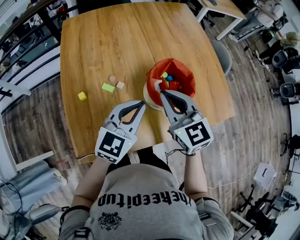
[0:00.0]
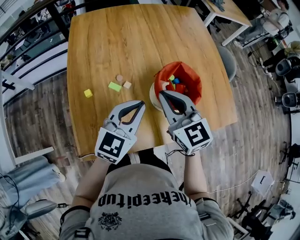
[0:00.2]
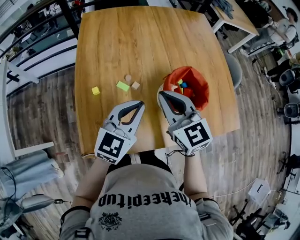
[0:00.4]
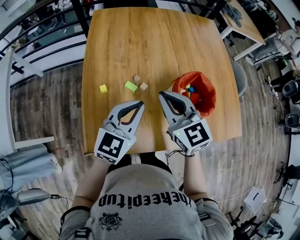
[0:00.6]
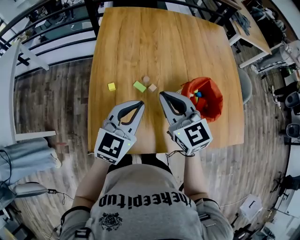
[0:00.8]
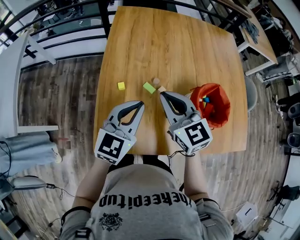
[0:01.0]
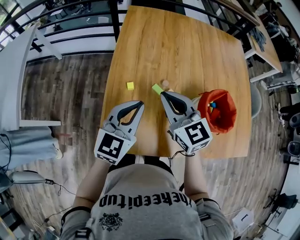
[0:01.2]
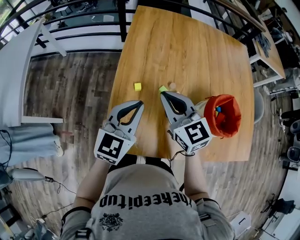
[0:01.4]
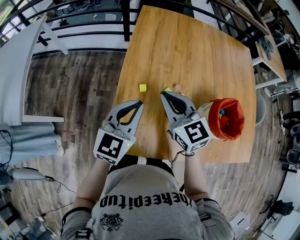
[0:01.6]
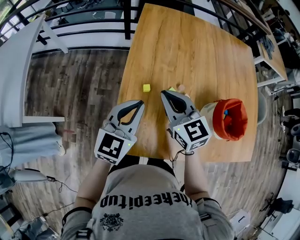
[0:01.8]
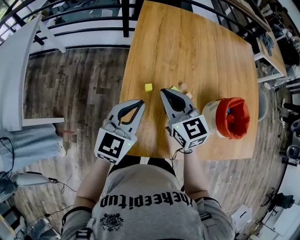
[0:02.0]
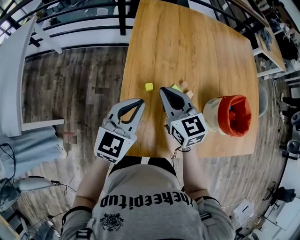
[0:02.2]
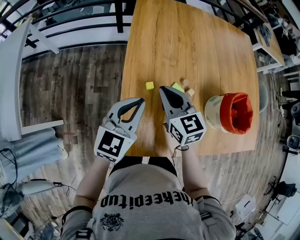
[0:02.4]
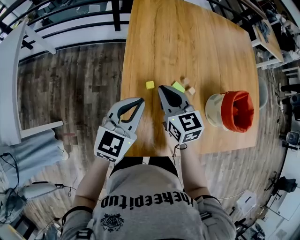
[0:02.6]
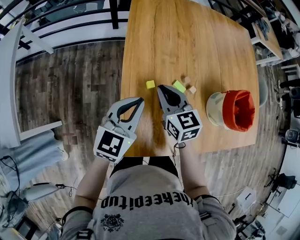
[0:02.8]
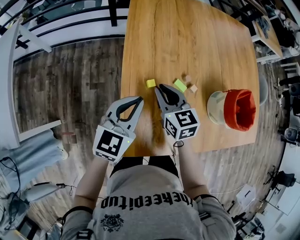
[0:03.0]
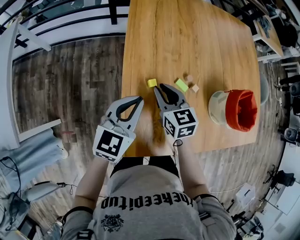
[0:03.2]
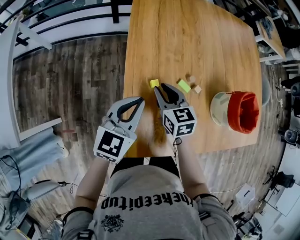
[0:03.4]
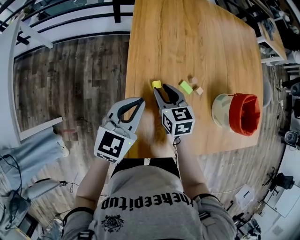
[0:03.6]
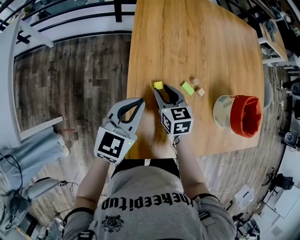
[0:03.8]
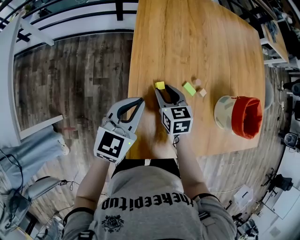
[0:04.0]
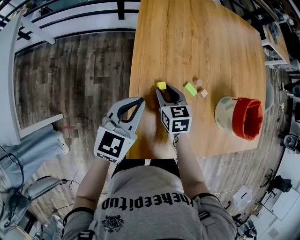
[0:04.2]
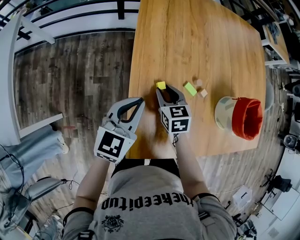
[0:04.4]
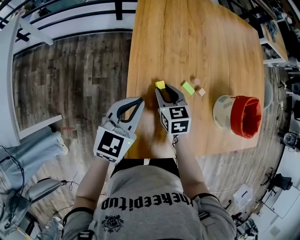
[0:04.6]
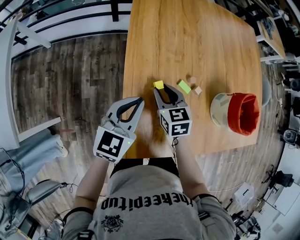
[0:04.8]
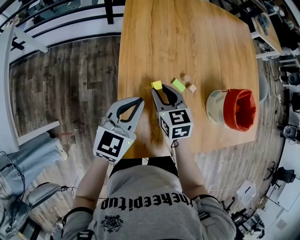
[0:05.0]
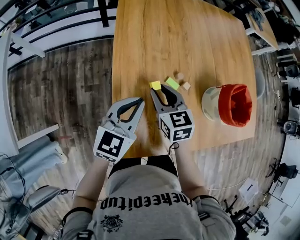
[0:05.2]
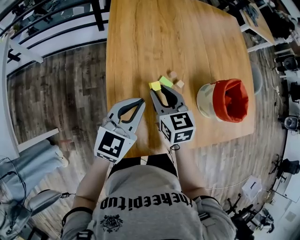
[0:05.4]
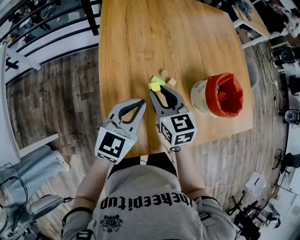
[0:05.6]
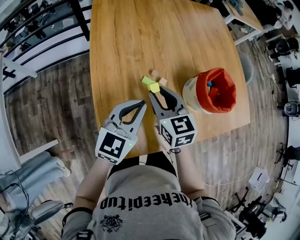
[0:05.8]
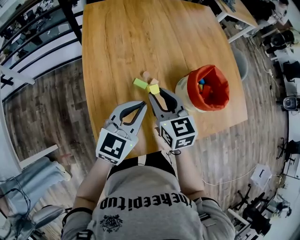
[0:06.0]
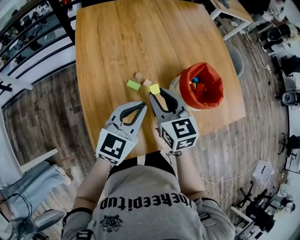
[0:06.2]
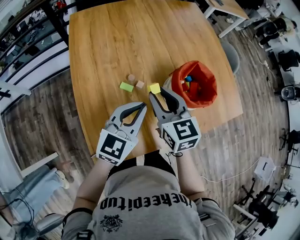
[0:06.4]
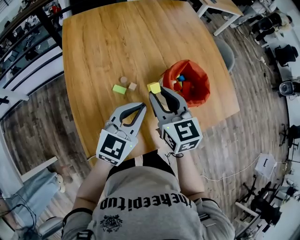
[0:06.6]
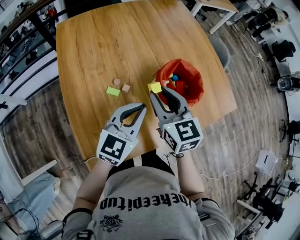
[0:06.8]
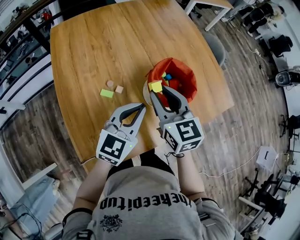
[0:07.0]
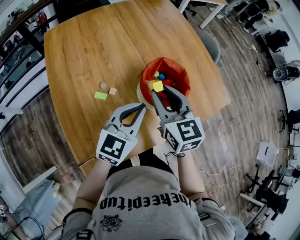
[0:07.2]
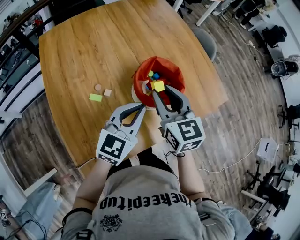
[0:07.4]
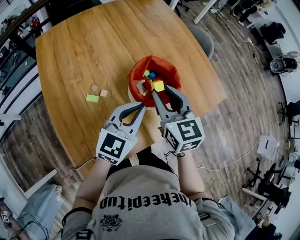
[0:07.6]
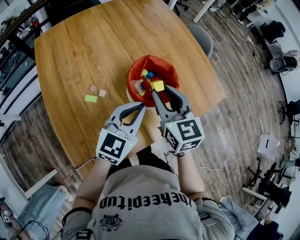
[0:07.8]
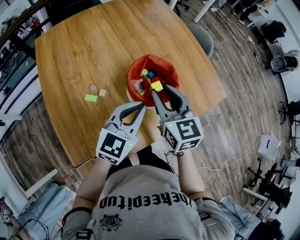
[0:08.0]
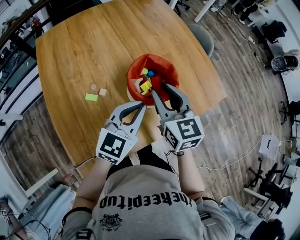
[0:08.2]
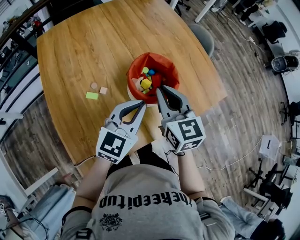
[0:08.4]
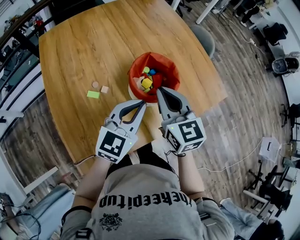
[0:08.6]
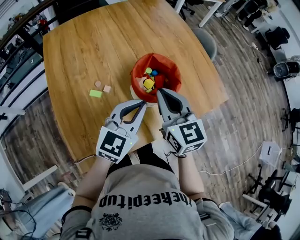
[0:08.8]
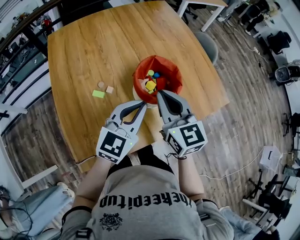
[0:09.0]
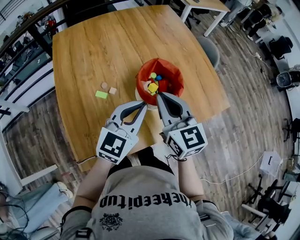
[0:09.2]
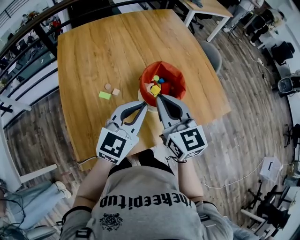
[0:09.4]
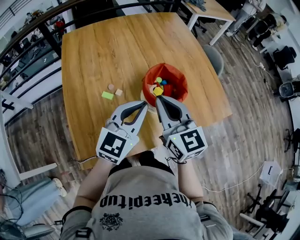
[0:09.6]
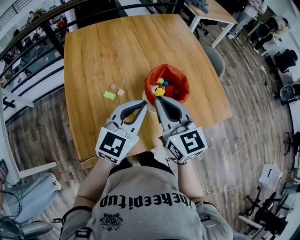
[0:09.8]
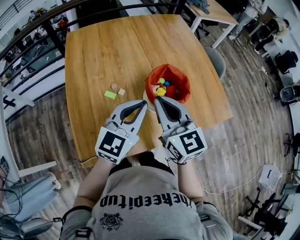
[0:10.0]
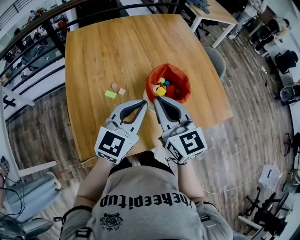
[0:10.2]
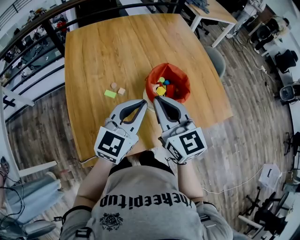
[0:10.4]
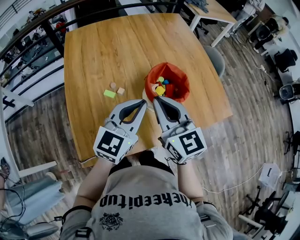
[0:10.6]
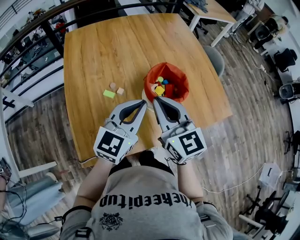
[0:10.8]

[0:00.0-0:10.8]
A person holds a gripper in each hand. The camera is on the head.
0.0 to 1.6 s: The left gripper changes place by roughly 25 cm, and rotates some 30 degrees. Meanwhile the right gripper ends up roughly 25 cm from where it was, and turns by roughly 20 degrees.
1.6 to 3.0 s: The right gripper travels downward by roughly 10 cm, and swivels about 20 degrees, while the left gripper heads downward and to the left, covering roughly 10 cm.
3.0 to 4.6 s: The right gripper travels downward by roughly 10 cm.
4.6 to 6.2 s: The left gripper is displaced to the right by some 20 cm, and swivels roughly 20 degrees, while the right gripper heads to the right and upward, covering approximately 25 cm, and changes its angle by about 20 degrees.
6.2 to 7.8 s: Both grippers move to the right, about 20 cm.
7.8 to 9.2 s: The right gripper shifts by approximately 5 cm, and closes up.
9.2 to 10.8 s: The right gripper ends up roughly 5 cm from where it was.

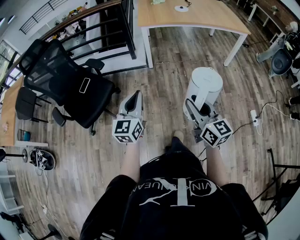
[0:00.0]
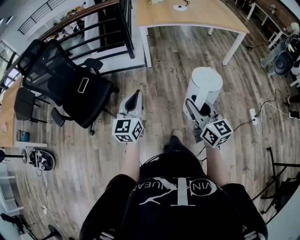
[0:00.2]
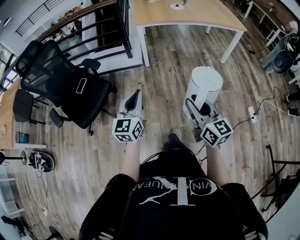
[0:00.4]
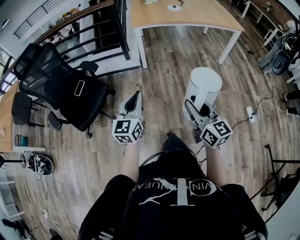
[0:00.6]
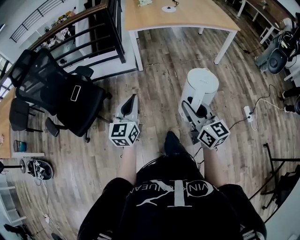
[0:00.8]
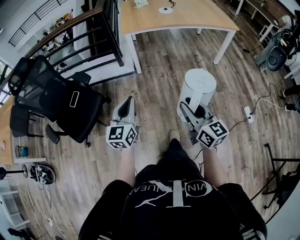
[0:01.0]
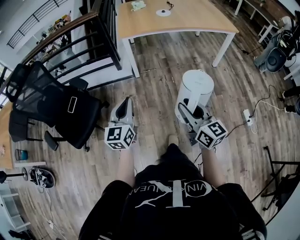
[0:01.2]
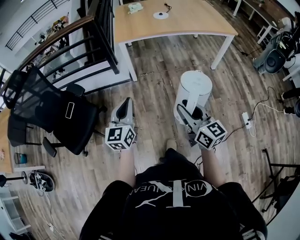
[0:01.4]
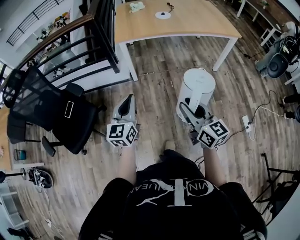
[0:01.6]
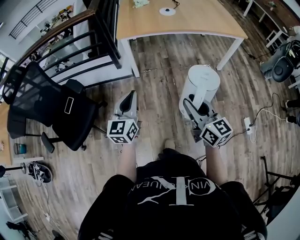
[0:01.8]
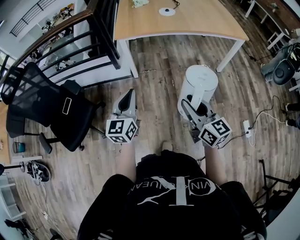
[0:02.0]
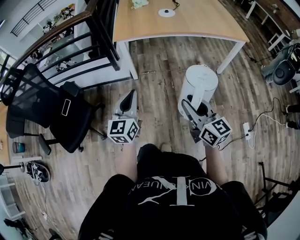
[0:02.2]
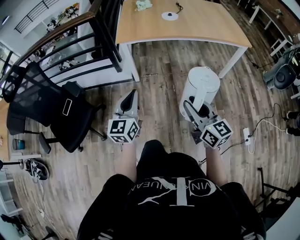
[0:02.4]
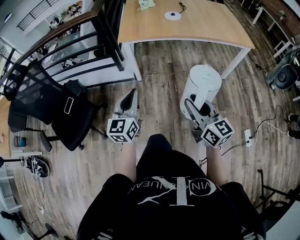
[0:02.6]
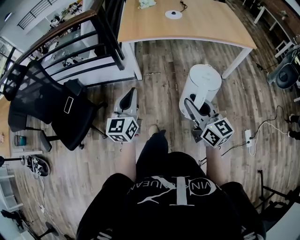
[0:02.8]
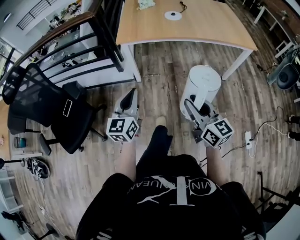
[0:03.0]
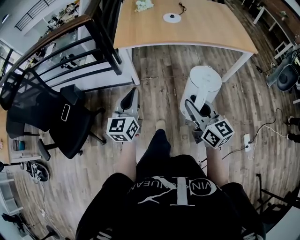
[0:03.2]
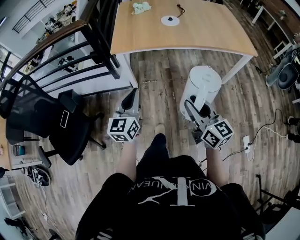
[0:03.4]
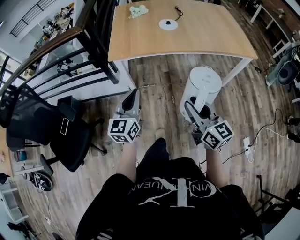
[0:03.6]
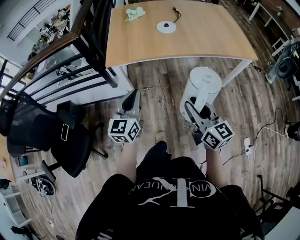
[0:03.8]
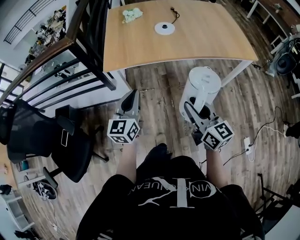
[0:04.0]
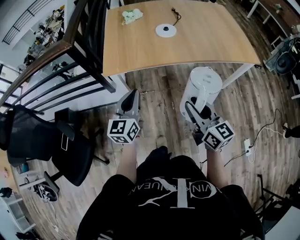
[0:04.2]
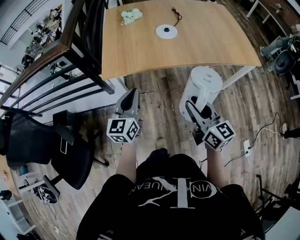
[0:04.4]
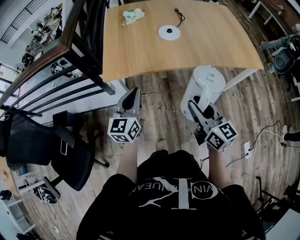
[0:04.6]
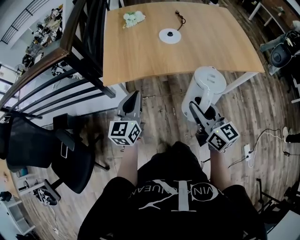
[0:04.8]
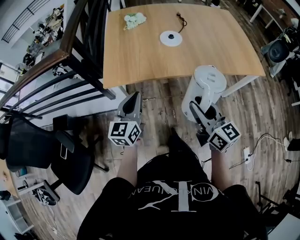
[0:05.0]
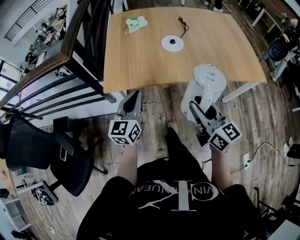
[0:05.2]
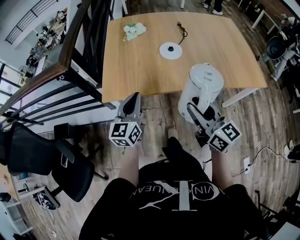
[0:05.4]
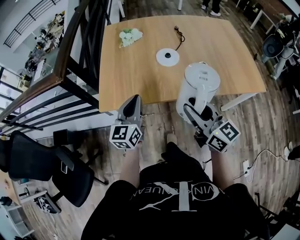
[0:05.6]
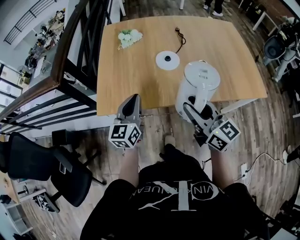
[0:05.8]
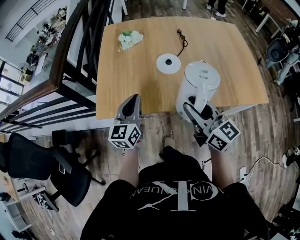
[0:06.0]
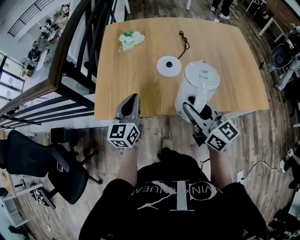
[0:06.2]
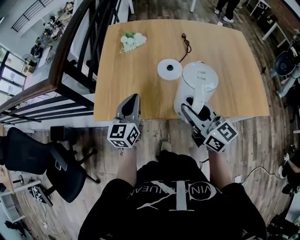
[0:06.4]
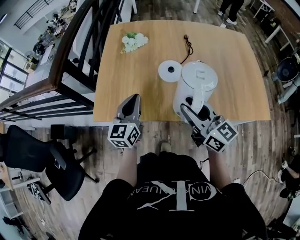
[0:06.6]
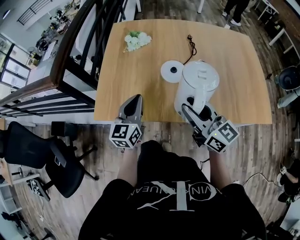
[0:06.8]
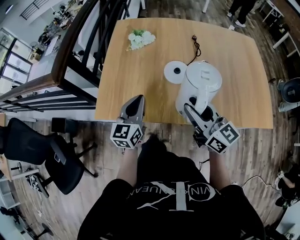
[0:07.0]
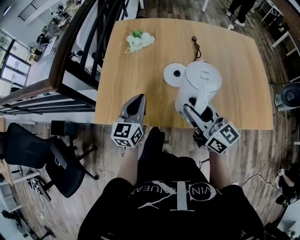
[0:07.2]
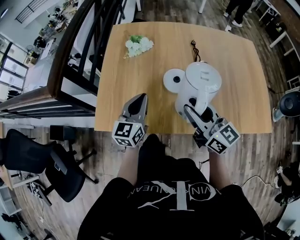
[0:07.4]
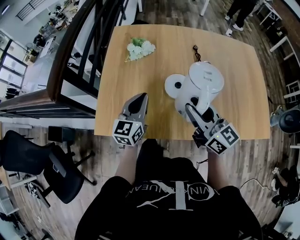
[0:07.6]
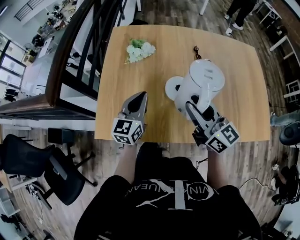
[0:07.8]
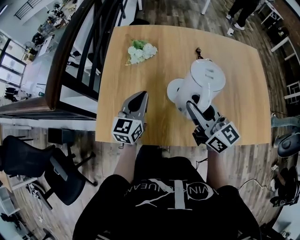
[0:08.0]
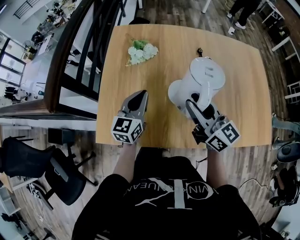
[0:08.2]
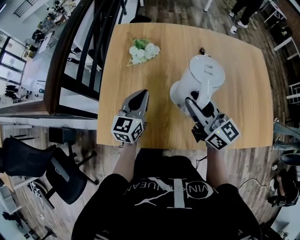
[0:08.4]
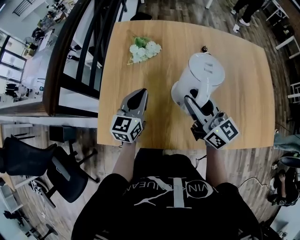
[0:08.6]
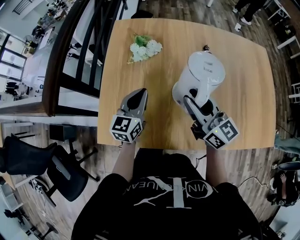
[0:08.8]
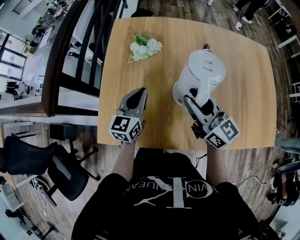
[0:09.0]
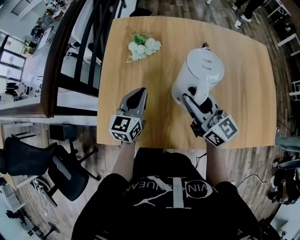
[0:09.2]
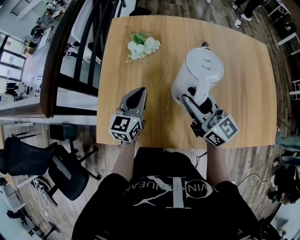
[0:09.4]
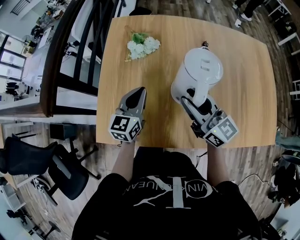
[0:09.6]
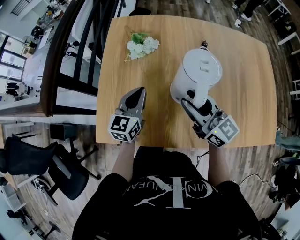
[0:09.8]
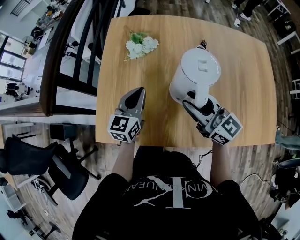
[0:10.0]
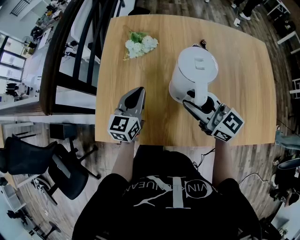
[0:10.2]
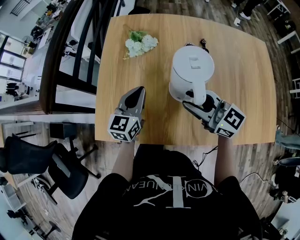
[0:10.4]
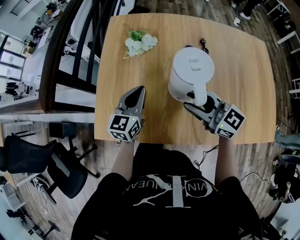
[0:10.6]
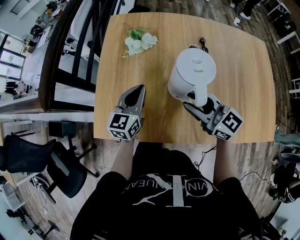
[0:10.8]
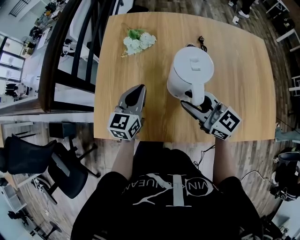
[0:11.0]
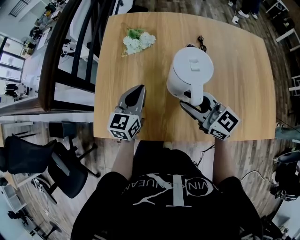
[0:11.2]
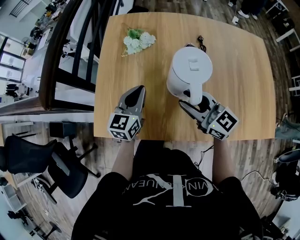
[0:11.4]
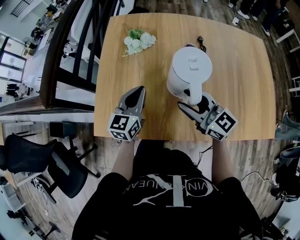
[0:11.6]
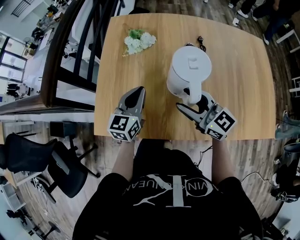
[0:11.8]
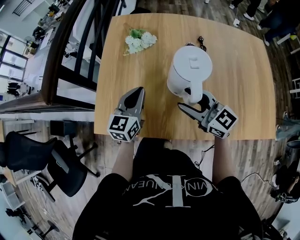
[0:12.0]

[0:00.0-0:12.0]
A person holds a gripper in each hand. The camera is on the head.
0.0 to 1.6 s: The grippers both shift forward and to the right by roughly 20 cm.
1.6 to 3.0 s: The two grippers go about 15 cm forward and to the right.
3.0 to 4.4 s: The two grippers go some 30 cm forward.
4.4 to 6.0 s: The grippers both shift forward by roughly 20 cm.
6.0 to 7.6 s: Both grippers travel together forward, some 15 cm.
7.6 to 9.0 s: Both grippers travel together forward, some 10 cm.
9.0 to 10.4 s: The right gripper swivels some 20 degrees.
10.4 to 12.0 s: The grippers make only small movements.

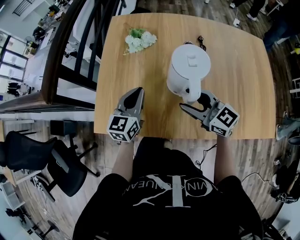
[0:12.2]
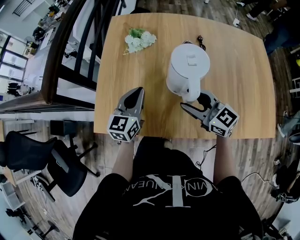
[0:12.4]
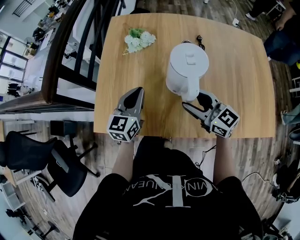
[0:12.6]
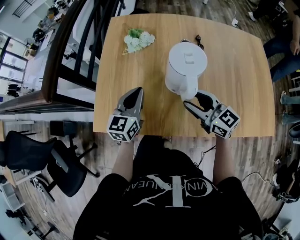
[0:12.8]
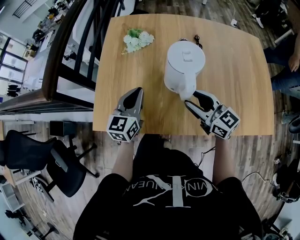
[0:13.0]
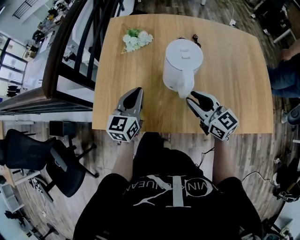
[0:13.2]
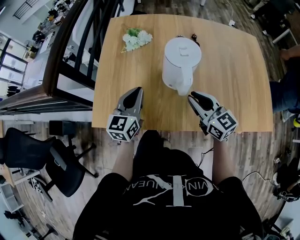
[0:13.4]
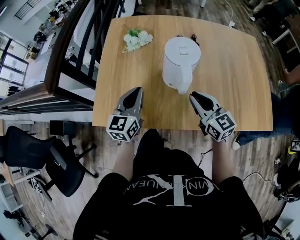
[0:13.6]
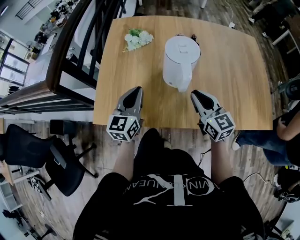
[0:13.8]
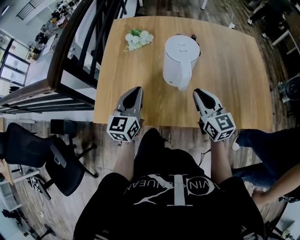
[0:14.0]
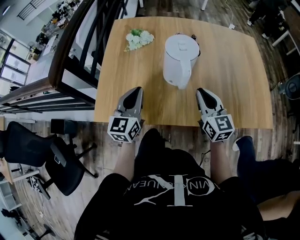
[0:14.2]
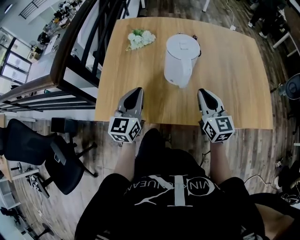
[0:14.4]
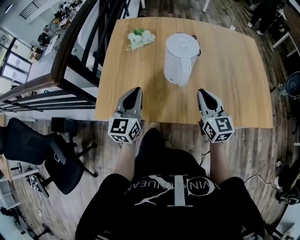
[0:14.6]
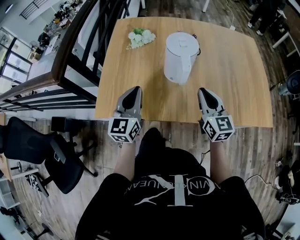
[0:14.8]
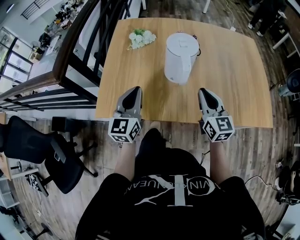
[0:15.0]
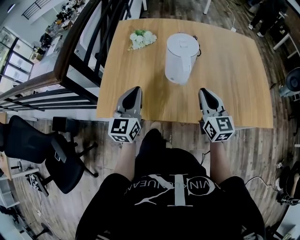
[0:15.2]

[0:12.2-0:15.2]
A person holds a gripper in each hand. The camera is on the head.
12.2 to 13.8 s: The right gripper shifts about 5 cm to the right, changes its angle by approximately 30 degrees, and closes its fingers, while the left gripper travels backward by approximately 5 cm.
13.8 to 15.2 s: The left gripper shifts by roughly 5 cm.
